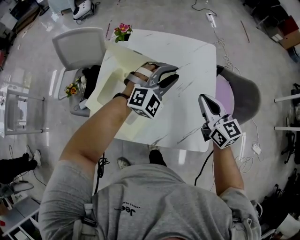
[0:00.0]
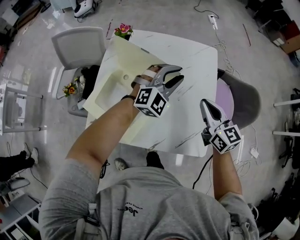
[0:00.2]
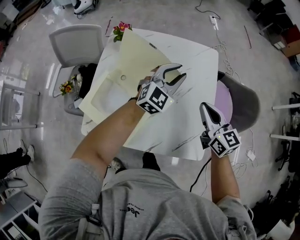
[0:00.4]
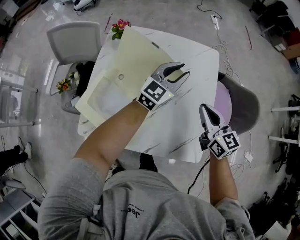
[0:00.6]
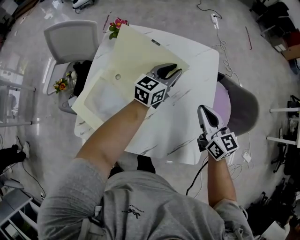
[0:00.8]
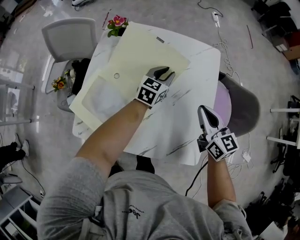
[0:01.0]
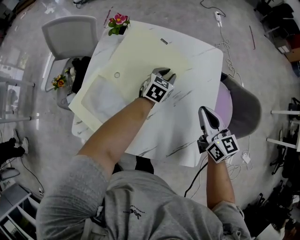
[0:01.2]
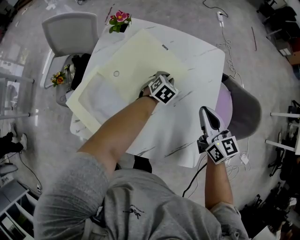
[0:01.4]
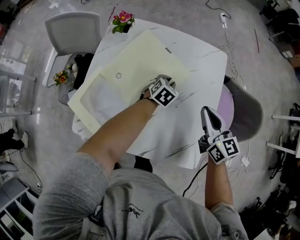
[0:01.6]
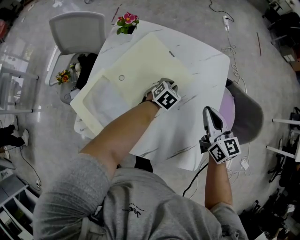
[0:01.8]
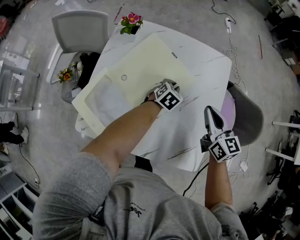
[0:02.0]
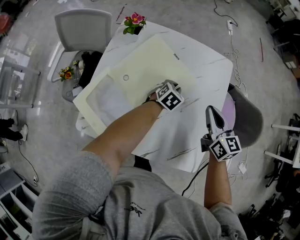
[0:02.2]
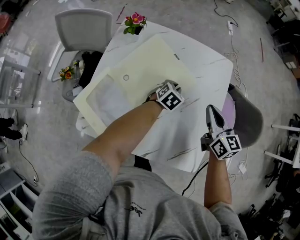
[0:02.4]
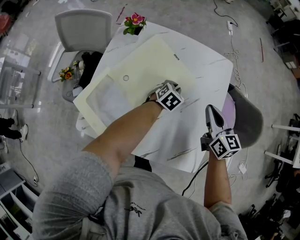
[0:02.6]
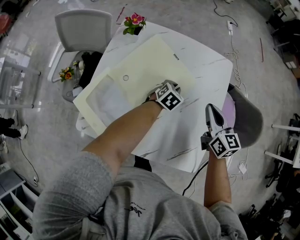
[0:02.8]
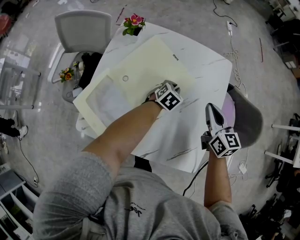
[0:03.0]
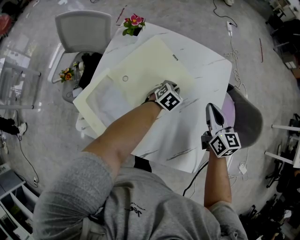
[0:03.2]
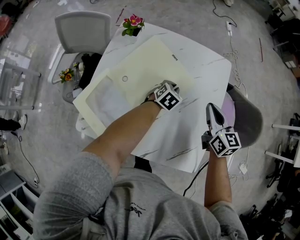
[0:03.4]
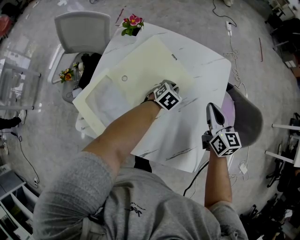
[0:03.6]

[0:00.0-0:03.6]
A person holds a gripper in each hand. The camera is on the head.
0:00.0 to 0:01.8: The left gripper is displaced downward and forward by roughly 25 cm, and rotates around the line of its fingers by roughly 60 degrees, counterclockwise from behind. The right gripper travels forward and downward by about 10 cm.
0:01.8 to 0:03.6: There are only small adjustments of the grippers.

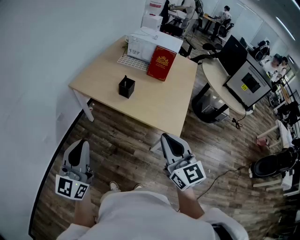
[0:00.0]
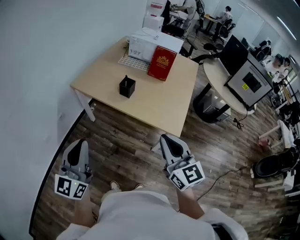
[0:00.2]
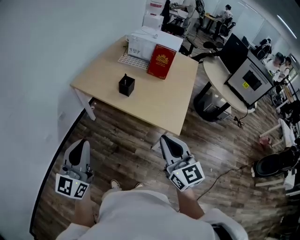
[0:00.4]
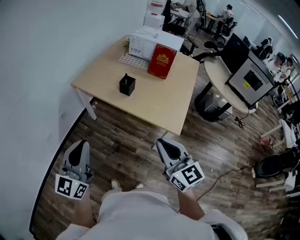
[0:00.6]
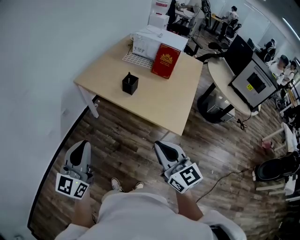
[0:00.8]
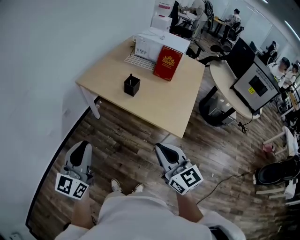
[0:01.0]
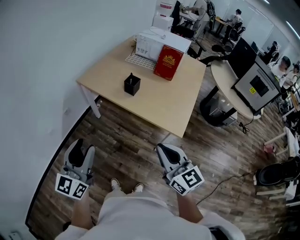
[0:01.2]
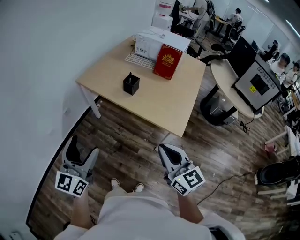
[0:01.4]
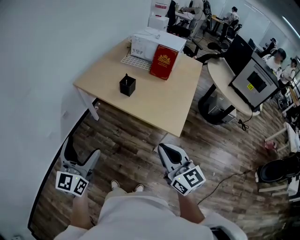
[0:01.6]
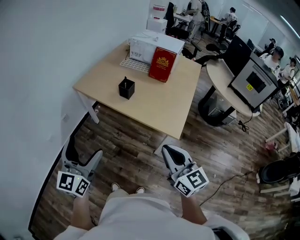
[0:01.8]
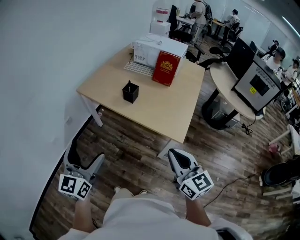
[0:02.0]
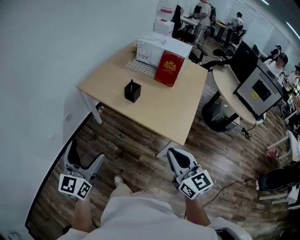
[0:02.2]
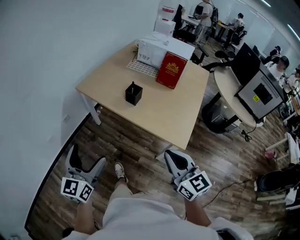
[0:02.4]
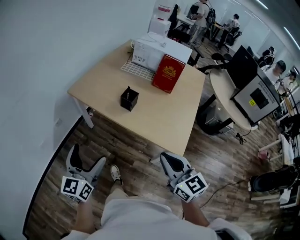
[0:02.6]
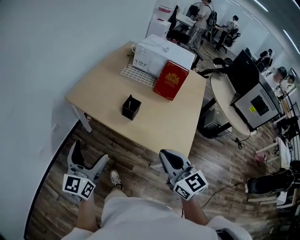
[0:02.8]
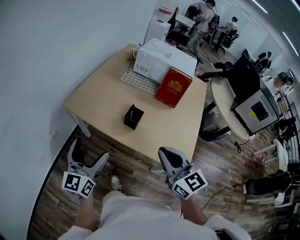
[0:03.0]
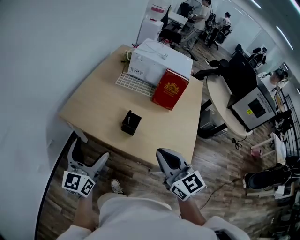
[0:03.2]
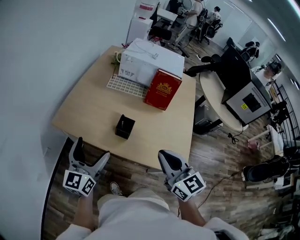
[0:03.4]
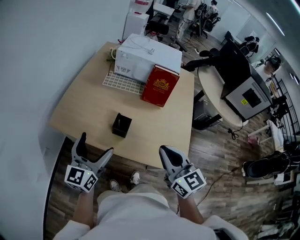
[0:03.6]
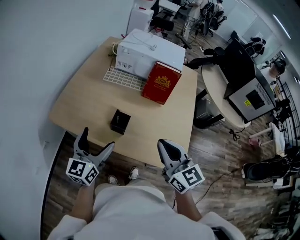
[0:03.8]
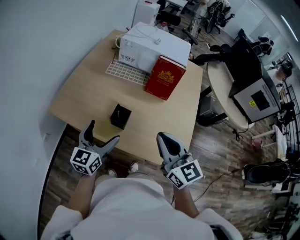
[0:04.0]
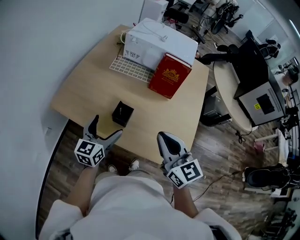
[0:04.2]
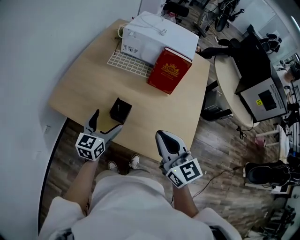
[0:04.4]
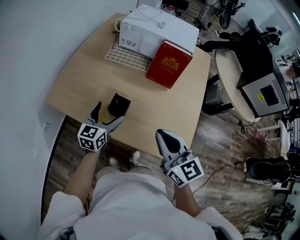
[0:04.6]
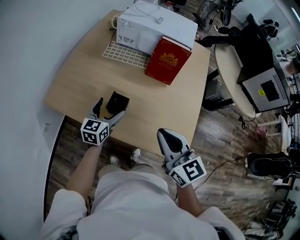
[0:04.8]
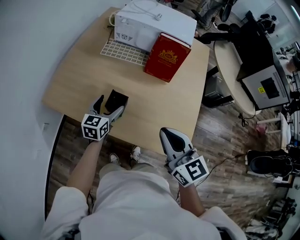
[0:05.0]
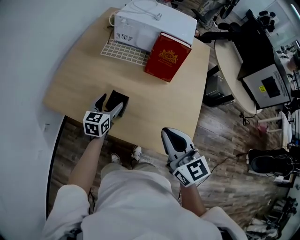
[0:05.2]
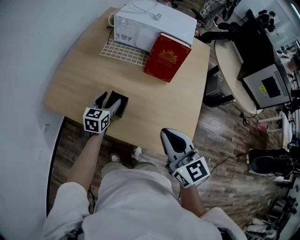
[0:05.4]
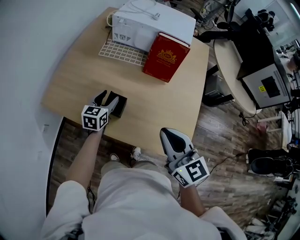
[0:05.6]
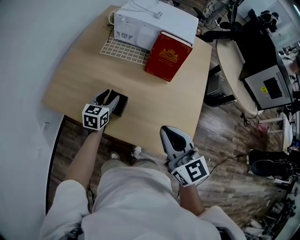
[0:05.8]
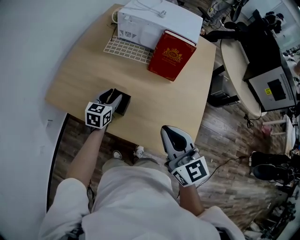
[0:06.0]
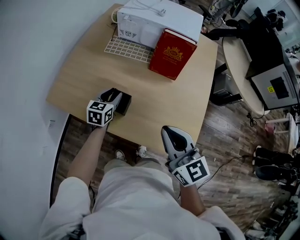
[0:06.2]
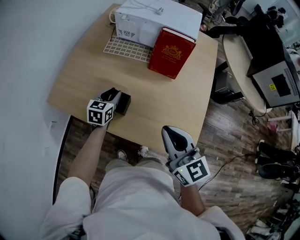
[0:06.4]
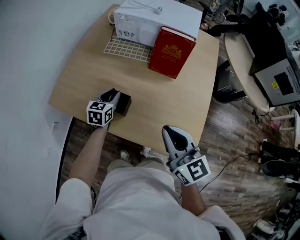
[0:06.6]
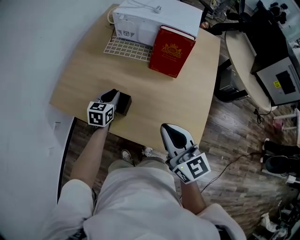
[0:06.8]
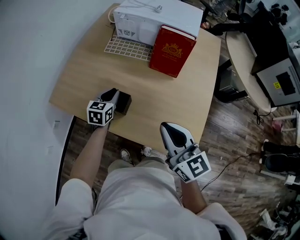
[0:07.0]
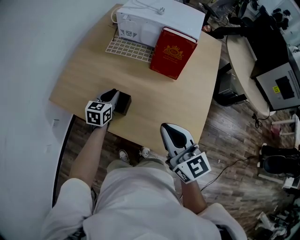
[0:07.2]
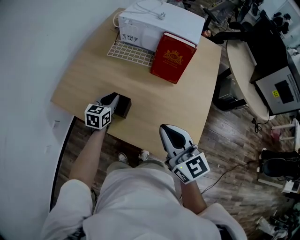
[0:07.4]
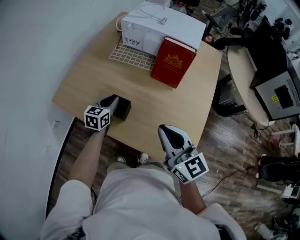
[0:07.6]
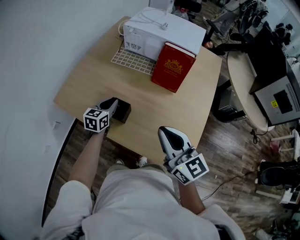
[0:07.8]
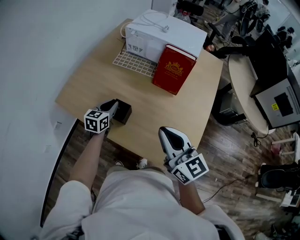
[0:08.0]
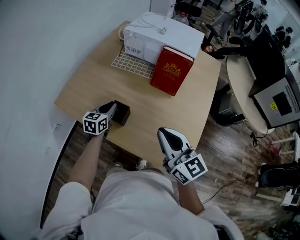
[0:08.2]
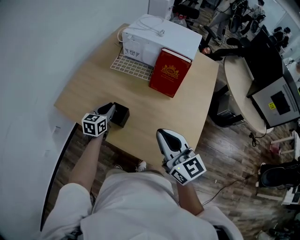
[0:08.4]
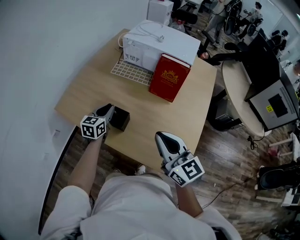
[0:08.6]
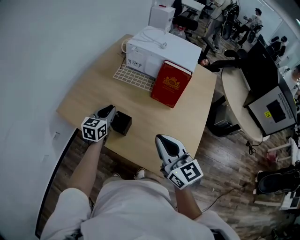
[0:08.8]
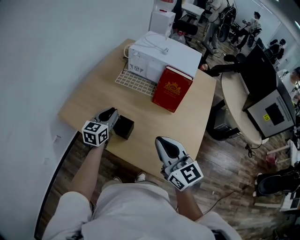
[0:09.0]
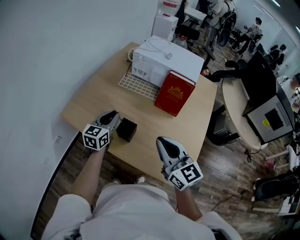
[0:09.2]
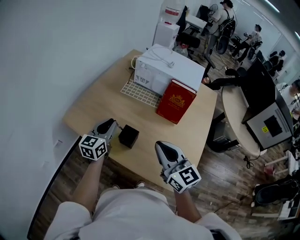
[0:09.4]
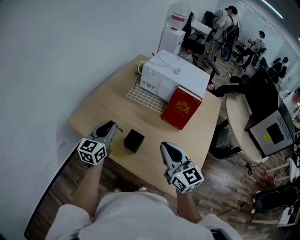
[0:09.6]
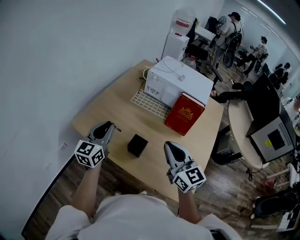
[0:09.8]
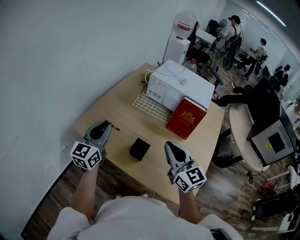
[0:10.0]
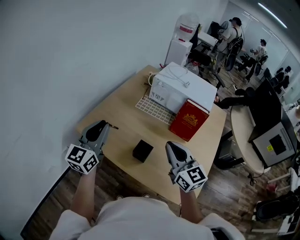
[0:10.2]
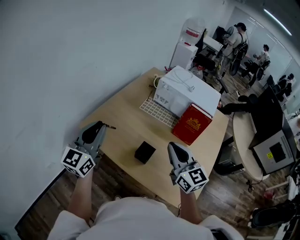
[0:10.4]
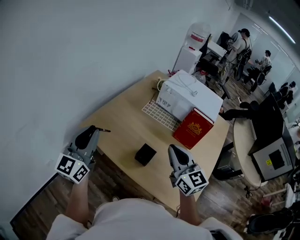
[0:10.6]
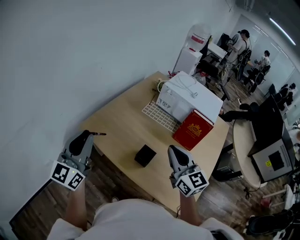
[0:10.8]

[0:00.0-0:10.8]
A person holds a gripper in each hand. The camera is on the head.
0:00.0 to 0:01.6: The left gripper moves some 5 cm, and opens. The right gripper changes place by approximately 5 cm.
0:01.6 to 0:03.0: Both grippers move forward, some 30 cm.
0:03.0 to 0:04.6: The left gripper shifts approximately 30 cm forward, to the right and downward, and swivels some 30 degrees, while the right gripper is displaced forward and to the right by roughly 15 cm.
0:04.6 to 0:06.2: The left gripper goes about 10 cm forward and downward, and closes its fingers.
0:06.2 to 0:07.8: The grippers stay close to where they were, moving slightly.
0:07.8 to 0:09.2: The left gripper heads upward, covering roughly 10 cm. The right gripper moves about 5 cm.
0:09.2 to 0:10.8: The right gripper travels forward and to the left by some 10 cm; the left gripper goes some 30 cm to the left, upward and backward, and changes its angle by about 30 degrees.

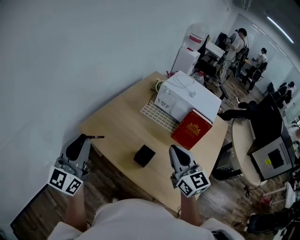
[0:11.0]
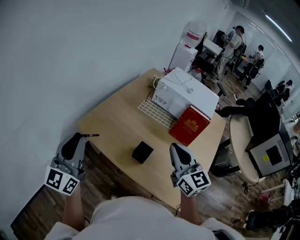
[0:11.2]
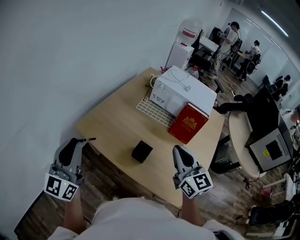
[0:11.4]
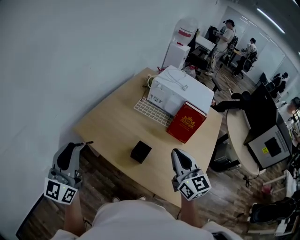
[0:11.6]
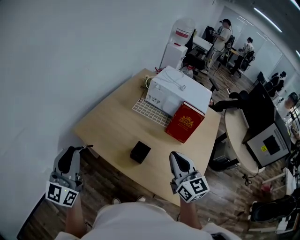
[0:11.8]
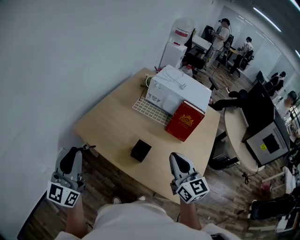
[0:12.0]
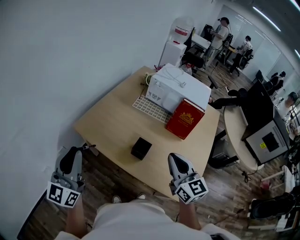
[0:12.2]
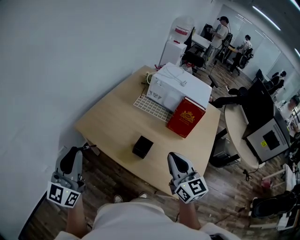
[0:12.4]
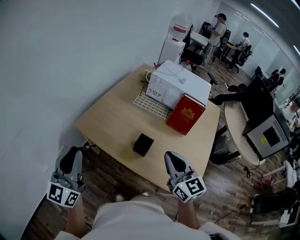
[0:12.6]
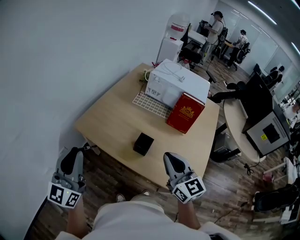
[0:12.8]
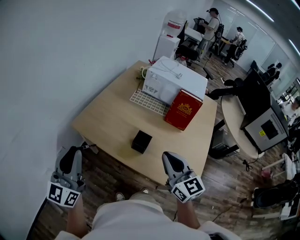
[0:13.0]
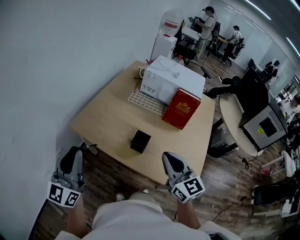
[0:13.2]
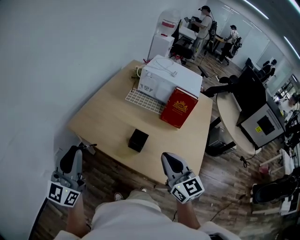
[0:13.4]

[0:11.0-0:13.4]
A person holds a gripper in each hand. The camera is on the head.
0:11.0 to 0:12.2: The left gripper moves some 5 cm. Meanwhile the right gripper is displaced backward by approximately 5 cm.
0:12.2 to 0:13.4: The right gripper ends up roughly 5 cm from where it was.

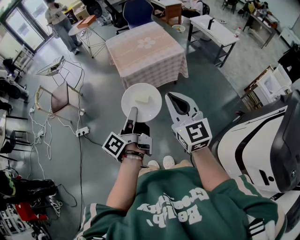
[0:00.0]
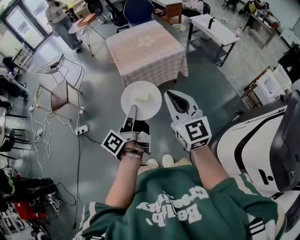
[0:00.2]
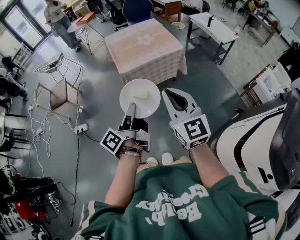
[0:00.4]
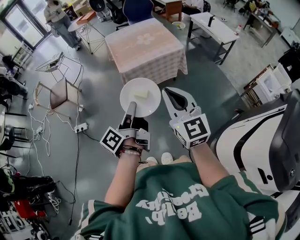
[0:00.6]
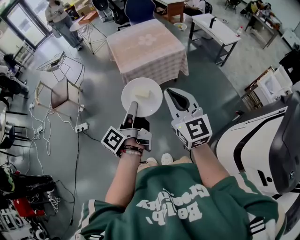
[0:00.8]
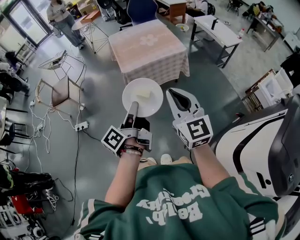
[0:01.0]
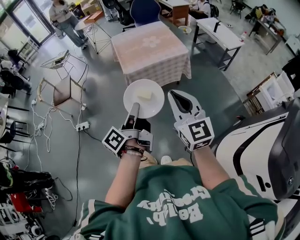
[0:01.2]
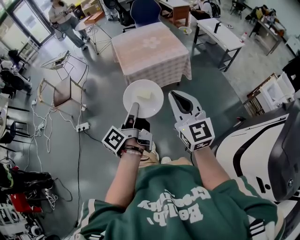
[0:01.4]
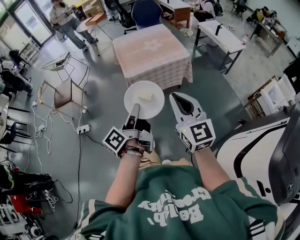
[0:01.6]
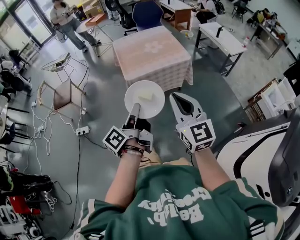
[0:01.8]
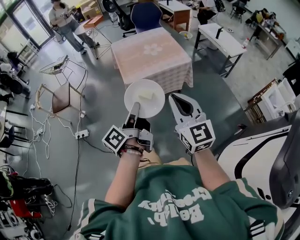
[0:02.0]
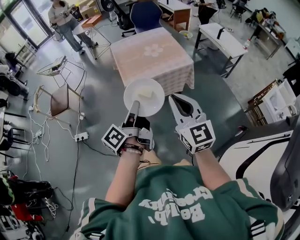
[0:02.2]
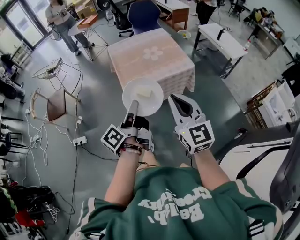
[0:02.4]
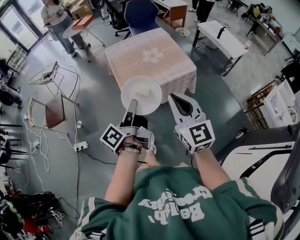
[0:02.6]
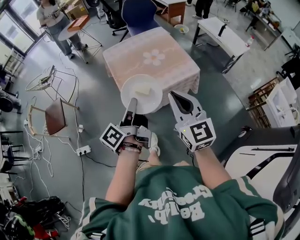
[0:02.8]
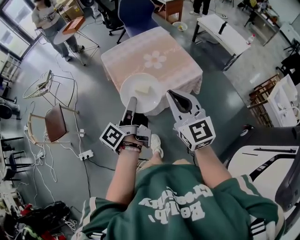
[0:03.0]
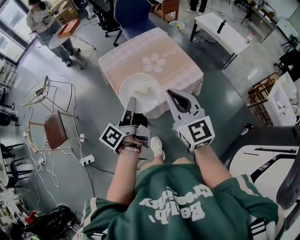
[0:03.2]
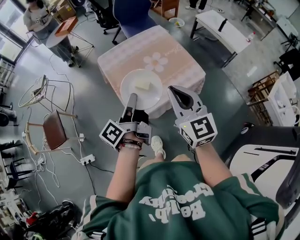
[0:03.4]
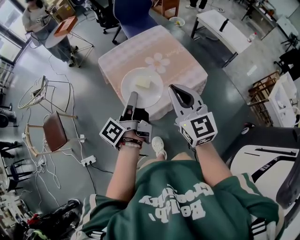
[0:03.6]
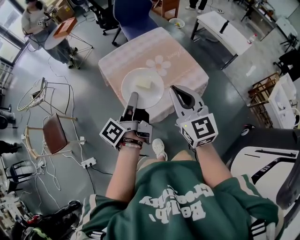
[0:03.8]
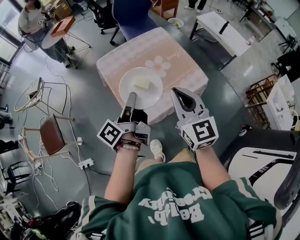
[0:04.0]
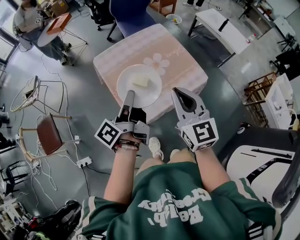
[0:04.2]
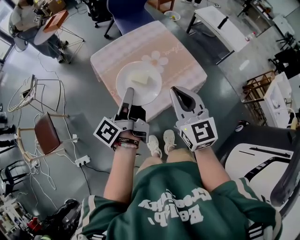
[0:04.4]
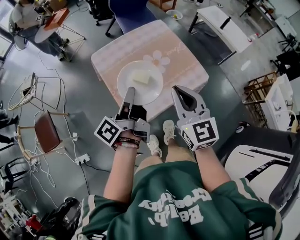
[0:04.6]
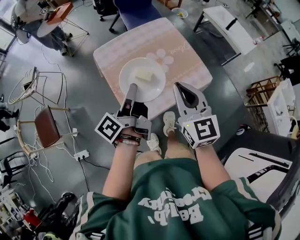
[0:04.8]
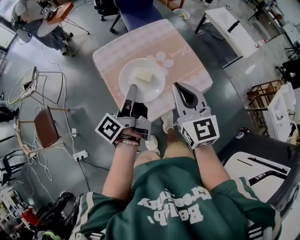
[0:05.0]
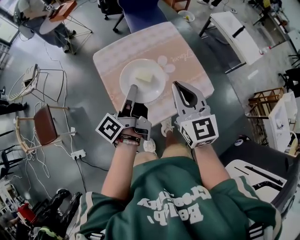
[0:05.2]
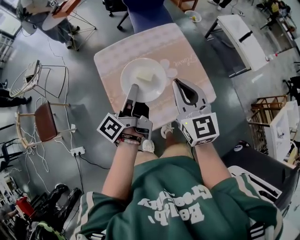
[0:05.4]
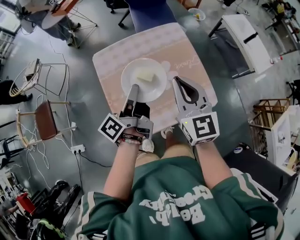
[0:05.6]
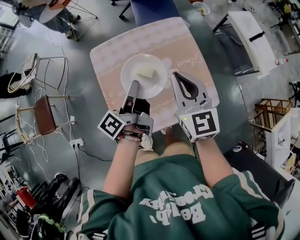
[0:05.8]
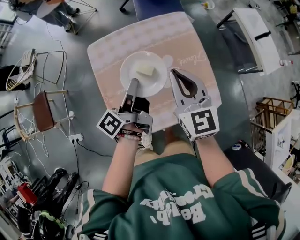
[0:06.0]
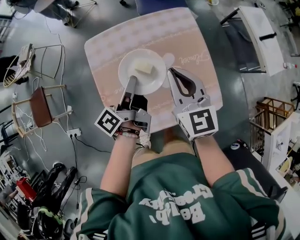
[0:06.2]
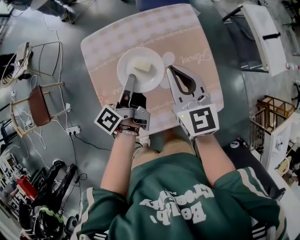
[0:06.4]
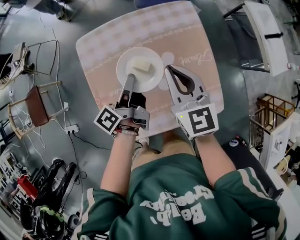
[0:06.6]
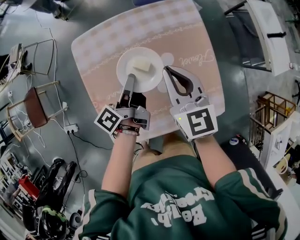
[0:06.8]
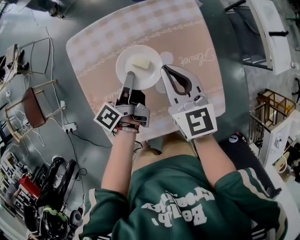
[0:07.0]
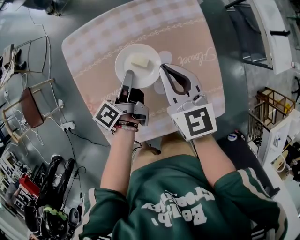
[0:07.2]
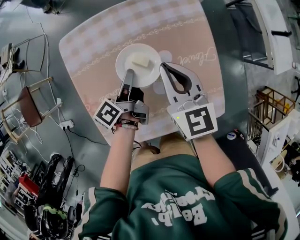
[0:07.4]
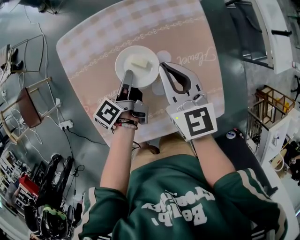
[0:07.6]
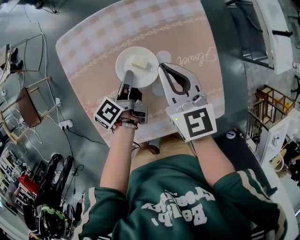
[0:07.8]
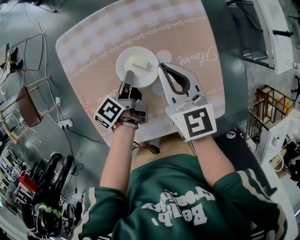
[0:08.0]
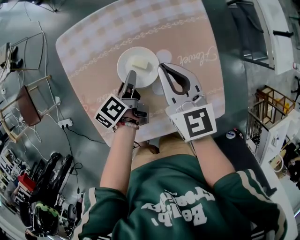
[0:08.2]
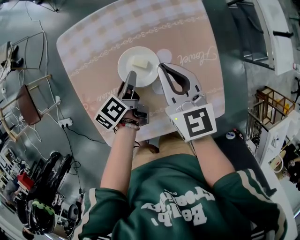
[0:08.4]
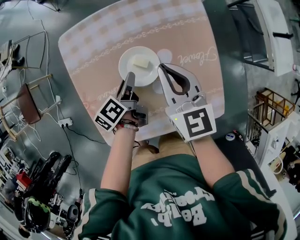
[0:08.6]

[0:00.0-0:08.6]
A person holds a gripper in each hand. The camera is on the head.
0:00.0 to 0:01.4: The two grippers keep their place.
0:01.4 to 0:02.8: The two grippers go roughly 30 cm forward.
0:02.8 to 0:04.4: The grippers both shift forward by roughly 20 cm.
0:04.4 to 0:05.8: The right gripper is displaced forward by some 20 cm. The left gripper shifts about 20 cm forward and downward.
0:05.8 to 0:07.2: Both grippers travel together downward and forward, roughly 20 cm.
0:07.2 to 0:08.6: The left gripper shifts about 5 cm downward, rotates some 20 degrees, and opens up.
